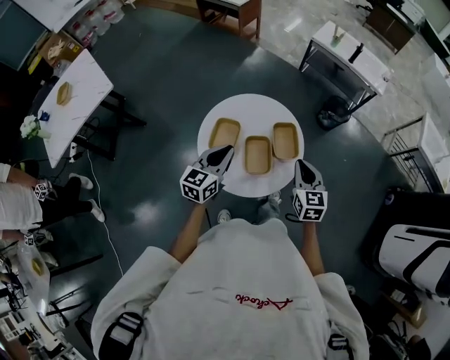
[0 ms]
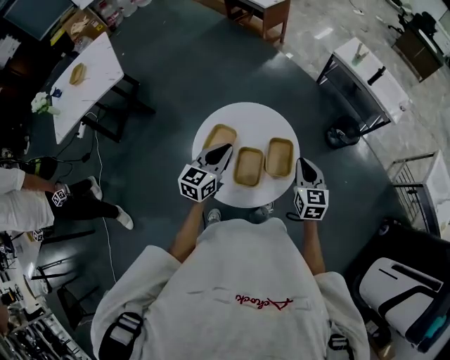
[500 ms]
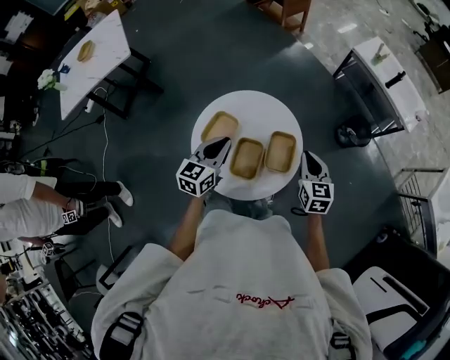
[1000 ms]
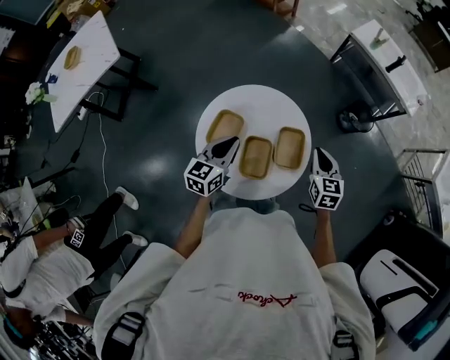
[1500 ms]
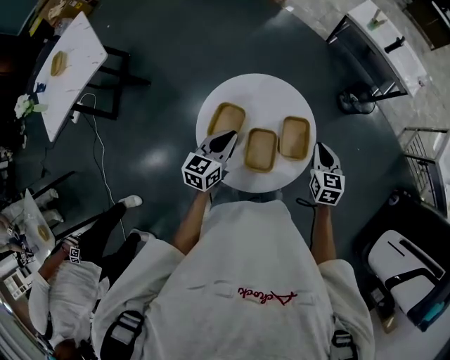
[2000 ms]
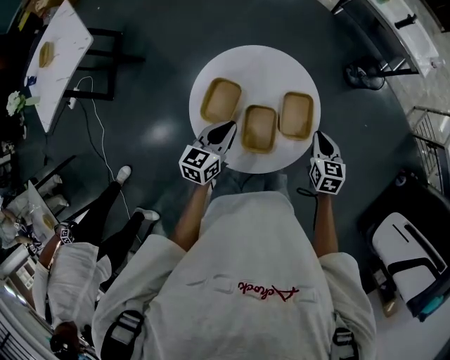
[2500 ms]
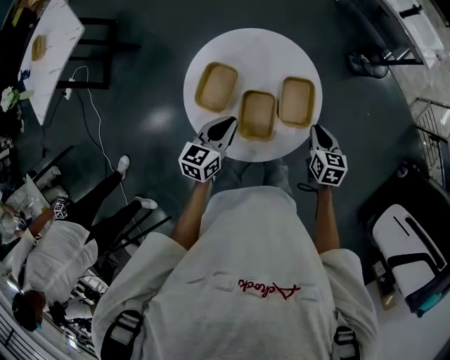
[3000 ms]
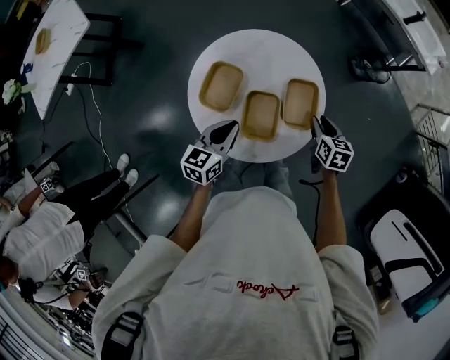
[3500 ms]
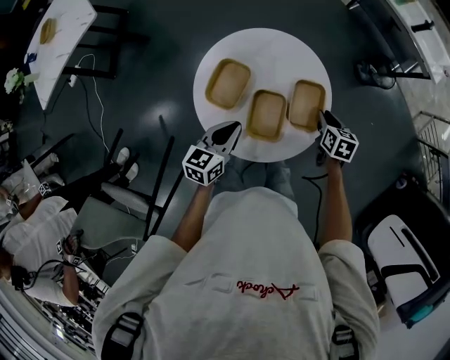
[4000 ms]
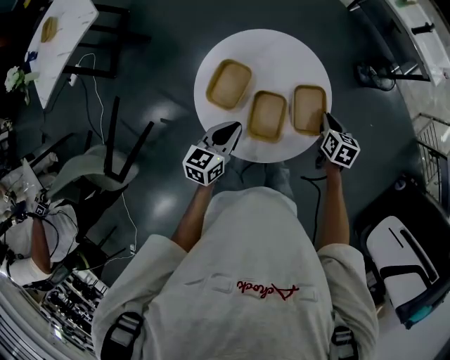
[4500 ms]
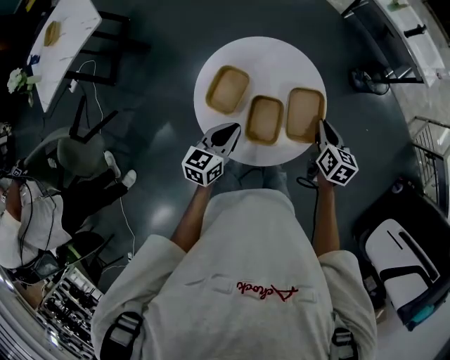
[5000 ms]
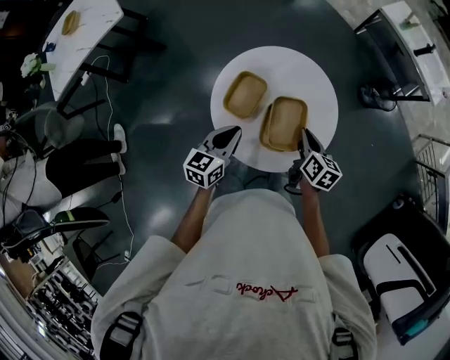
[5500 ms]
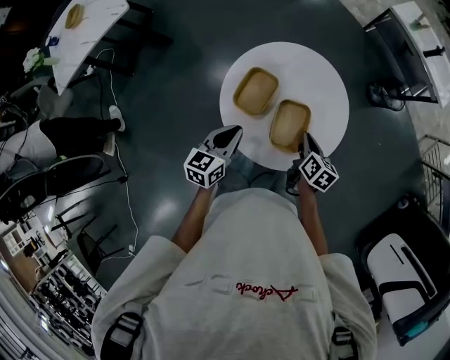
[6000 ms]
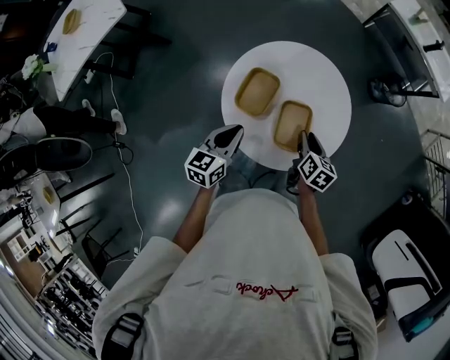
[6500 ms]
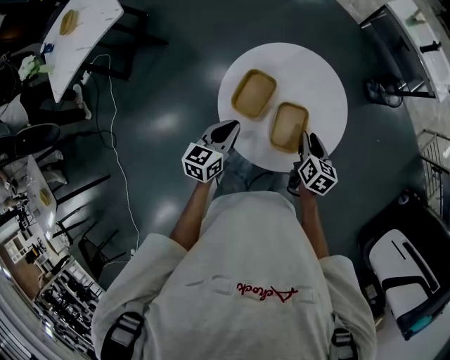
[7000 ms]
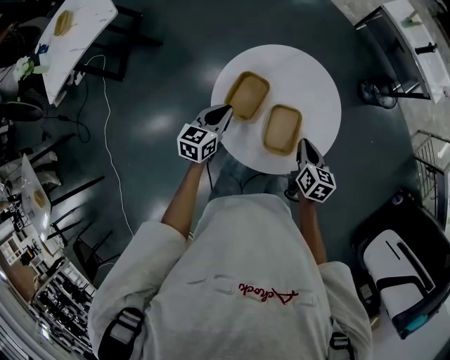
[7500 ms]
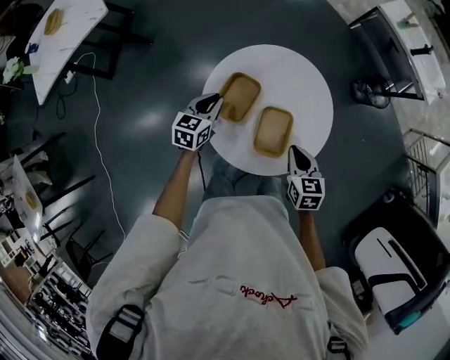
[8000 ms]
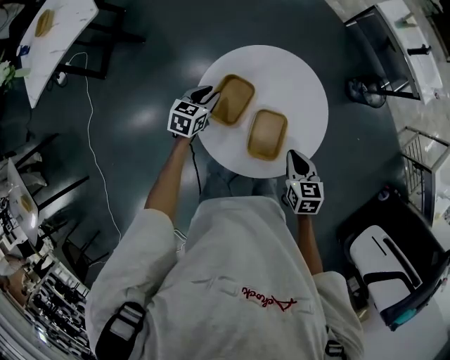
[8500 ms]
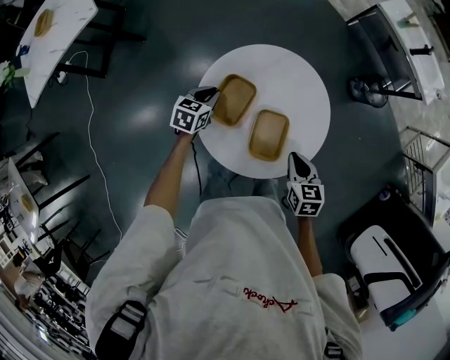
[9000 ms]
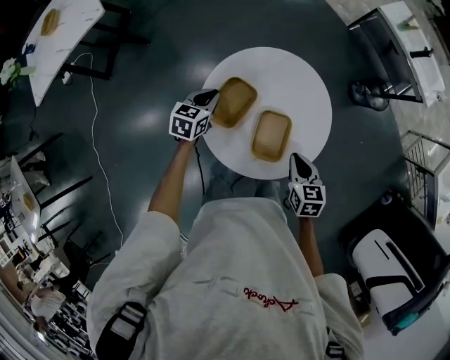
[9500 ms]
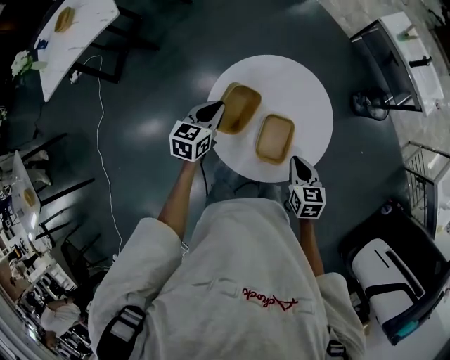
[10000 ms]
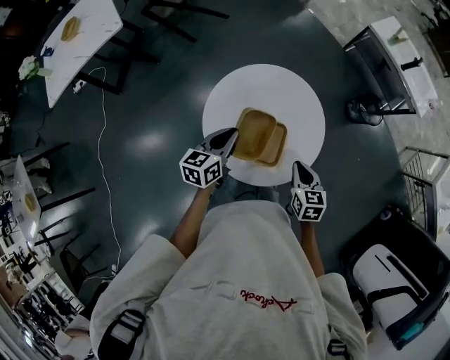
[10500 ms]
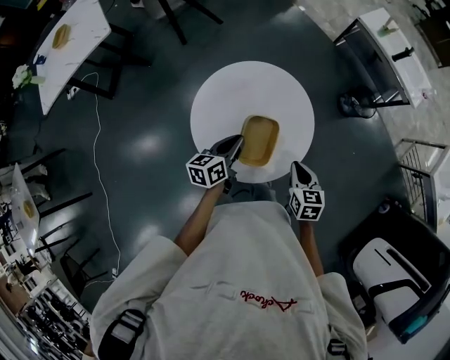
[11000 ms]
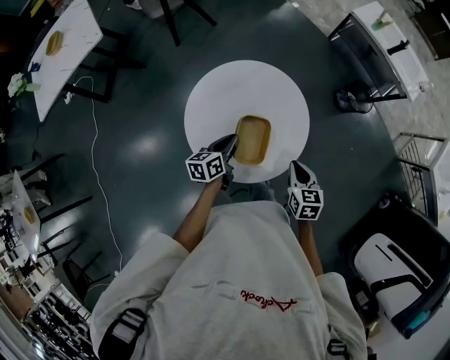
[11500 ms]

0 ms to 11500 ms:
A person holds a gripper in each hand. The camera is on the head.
0 ms to 2000 ms: The two grippers go about 15 cm forward and downward.
2000 ms to 4000 ms: The right gripper goes about 15 cm downward, changes its angle by approximately 20 degrees, and opens up; the left gripper goes approximately 10 cm backward and downward.
4000 ms to 6000 ms: The right gripper moves to the left and backward, some 15 cm, and swivels approximately 20 degrees. The left gripper heads to the left, covering approximately 10 cm.
6000 ms to 7500 ms: The right gripper opens, then closes once more. The left gripper is displaced forward by approximately 5 cm.
7500 ms to 9500 ms: The right gripper swivels approximately 20 degrees. Meanwhile the left gripper moves forward, some 5 cm.
9500 ms to 11500 ms: The right gripper moves to the right, about 10 cm. Meanwhile the left gripper heads to the right and backward, covering some 15 cm, and turns by about 30 degrees.

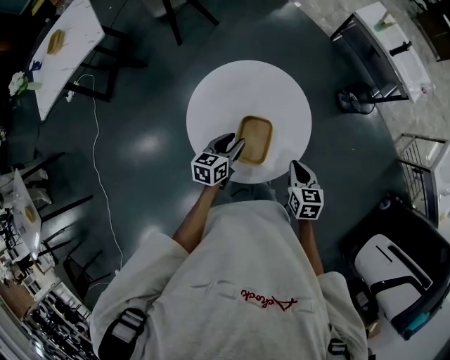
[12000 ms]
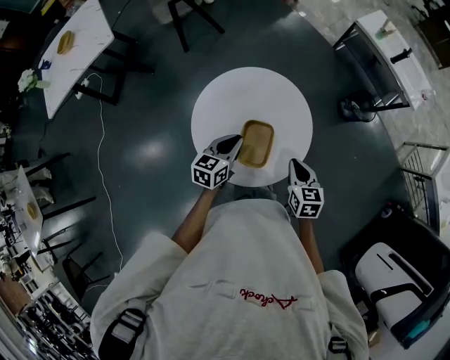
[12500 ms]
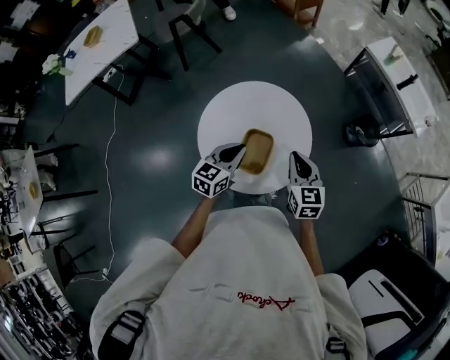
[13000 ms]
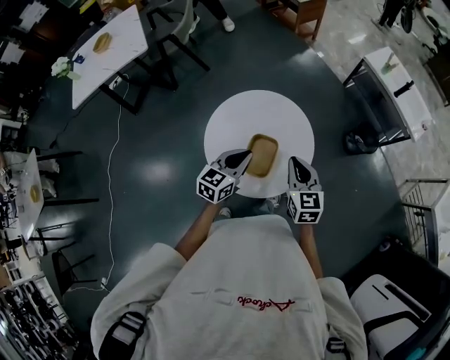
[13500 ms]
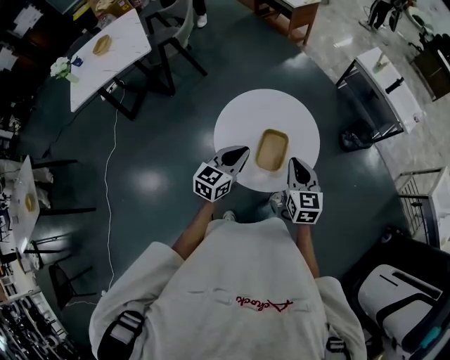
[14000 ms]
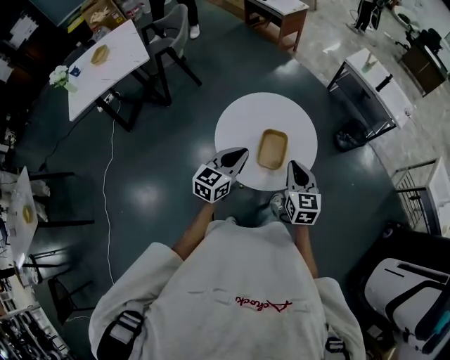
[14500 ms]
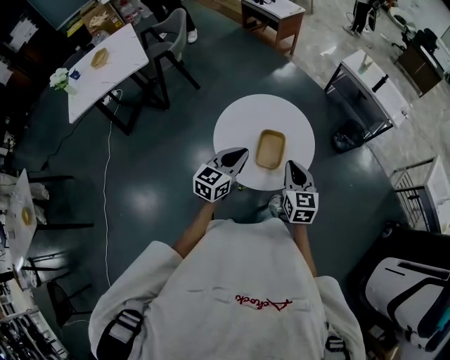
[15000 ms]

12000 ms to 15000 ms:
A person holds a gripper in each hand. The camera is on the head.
12000 ms to 13500 ms: The grippers both shift upward by some 15 cm. The right gripper changes its angle by some 30 degrees; the left gripper rotates some 20 degrees, and closes its fingers.
13500 ms to 15000 ms: The left gripper travels backward and to the left by some 10 cm; the right gripper goes about 10 cm backward.

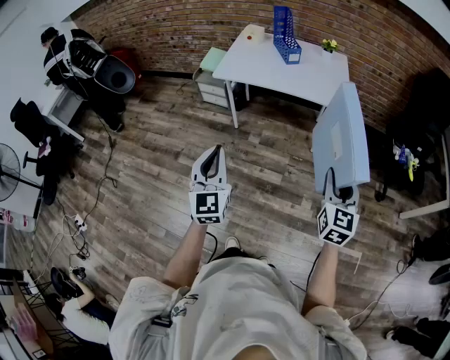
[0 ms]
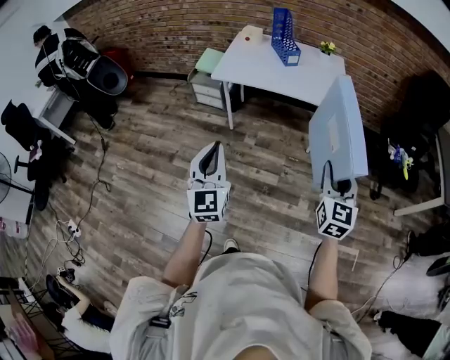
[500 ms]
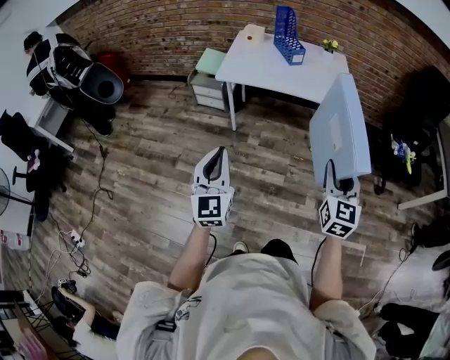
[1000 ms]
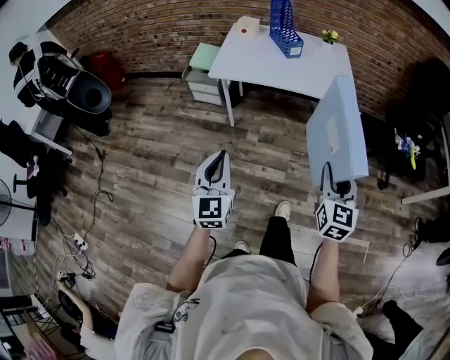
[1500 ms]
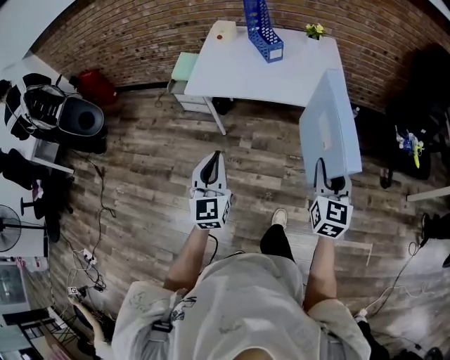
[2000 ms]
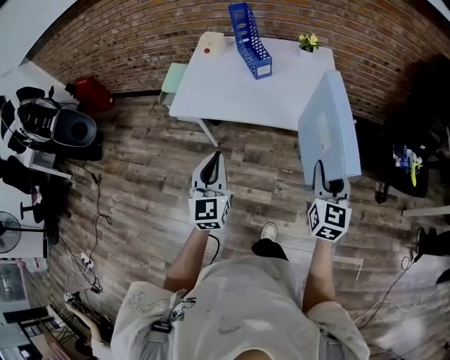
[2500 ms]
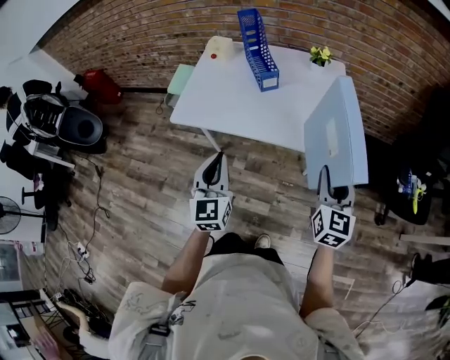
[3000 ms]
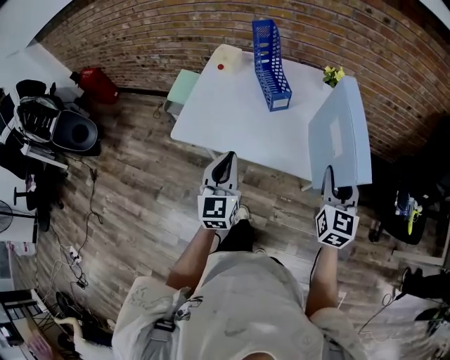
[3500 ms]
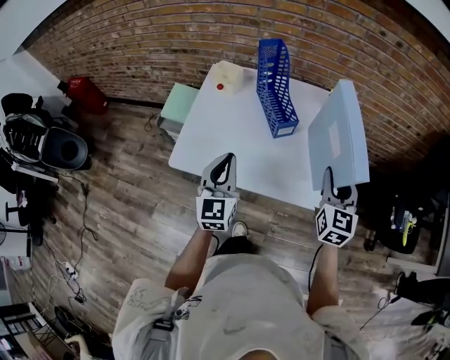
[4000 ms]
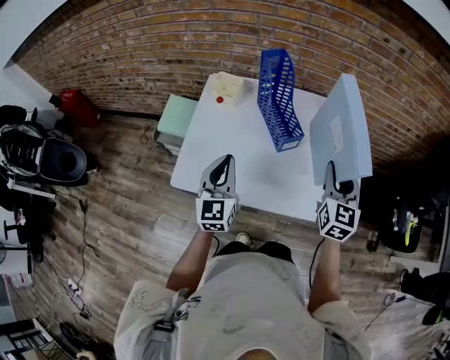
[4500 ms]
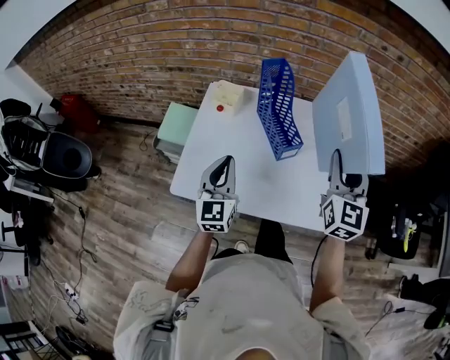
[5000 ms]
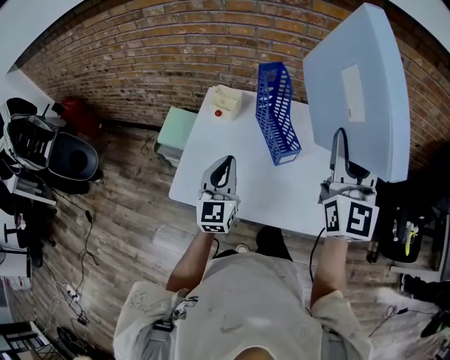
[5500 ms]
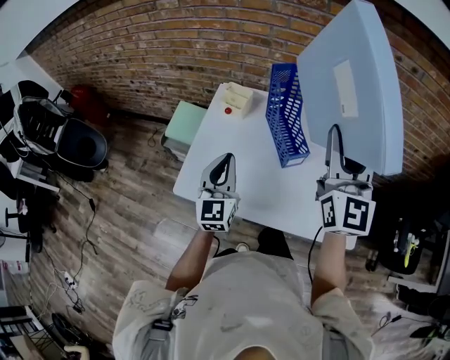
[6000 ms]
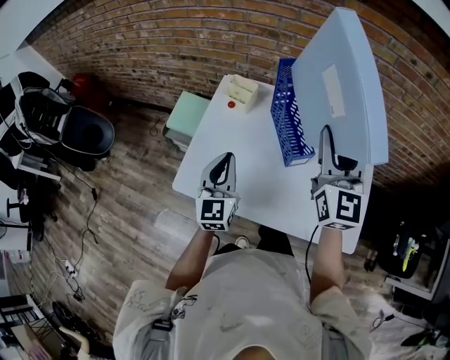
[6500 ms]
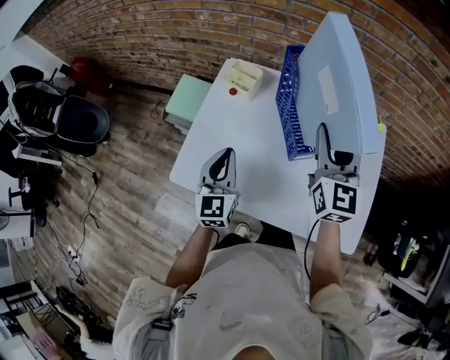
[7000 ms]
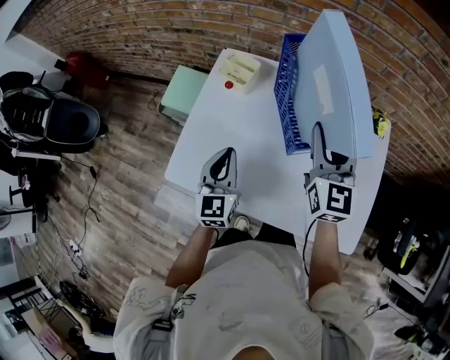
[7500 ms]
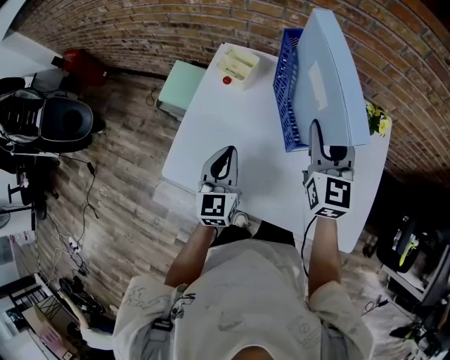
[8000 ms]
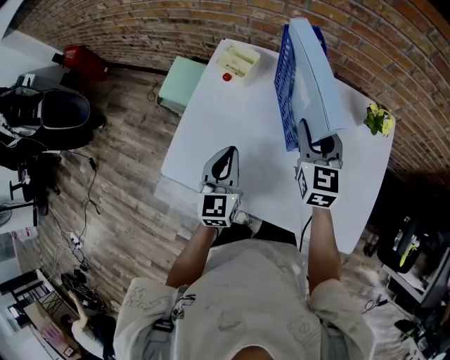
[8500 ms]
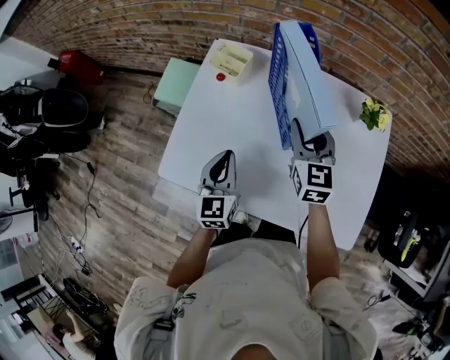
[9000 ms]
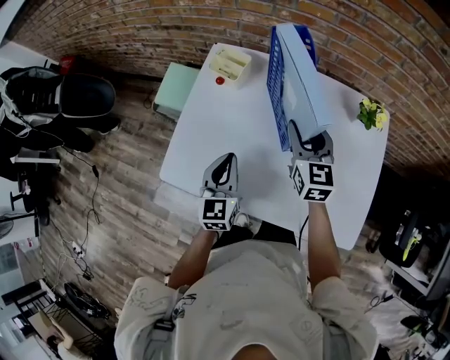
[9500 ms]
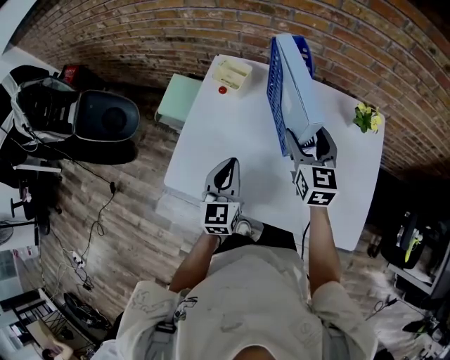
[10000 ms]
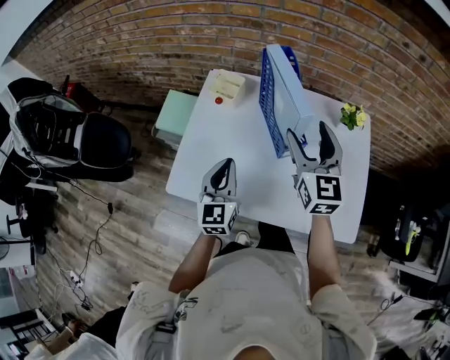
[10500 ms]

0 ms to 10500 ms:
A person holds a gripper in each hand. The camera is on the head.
0 ms to 2000 ms: The two grippers go about 15 cm forward.
2000 ms to 4000 ms: Both grippers move forward, about 35 cm.
4000 ms to 6500 ms: The right gripper travels forward, upward and to the left by some 25 cm, and changes its angle by roughly 20 degrees; the left gripper heads forward and to the left, covering approximately 10 cm.
6500 ms to 8500 ms: The right gripper is displaced downward and forward by about 20 cm, and rotates about 20 degrees; the left gripper travels downward by some 10 cm.
8500 ms to 10500 ms: The right gripper heads upward and backward, covering about 10 cm, and opens its fingers.

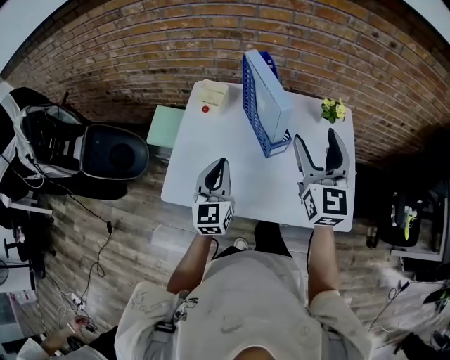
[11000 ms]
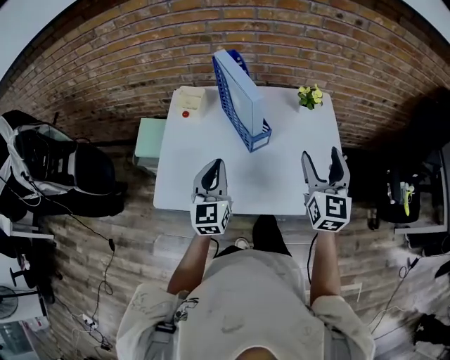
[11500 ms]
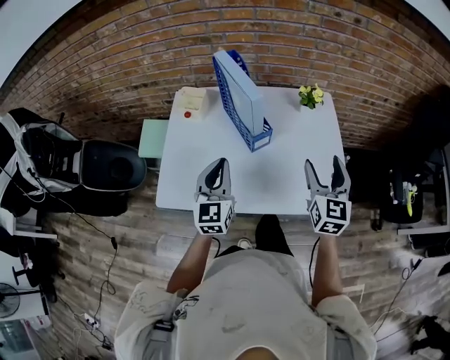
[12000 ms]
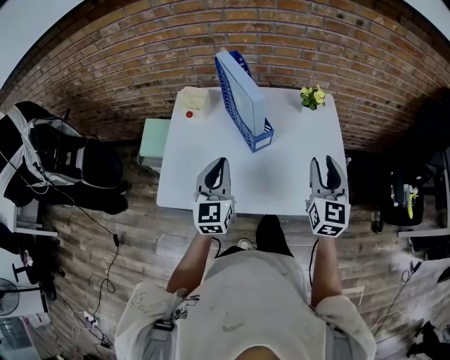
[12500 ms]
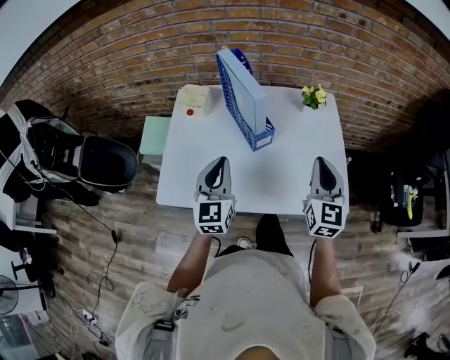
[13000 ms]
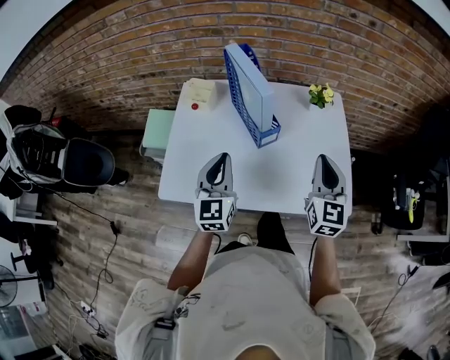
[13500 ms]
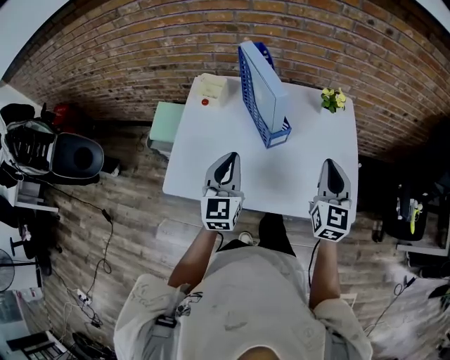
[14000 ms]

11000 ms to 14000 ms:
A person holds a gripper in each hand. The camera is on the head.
11000 ms to 12500 ms: The right gripper travels to the right, downward and backward by approximately 15 cm, and closes, while the left gripper is displaced to the right by about 5 cm.
12500 ms to 14000 ms: The right gripper closes.
